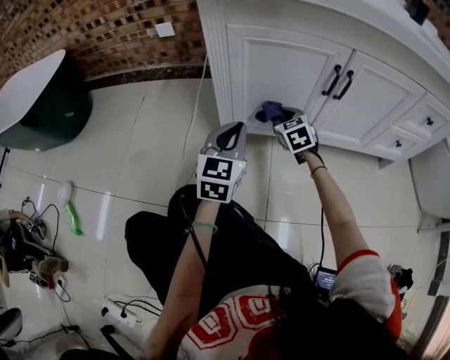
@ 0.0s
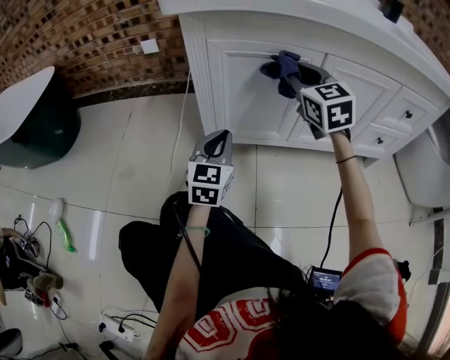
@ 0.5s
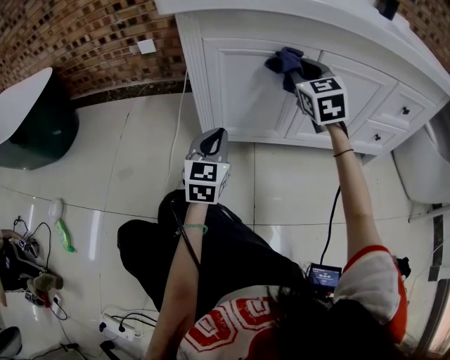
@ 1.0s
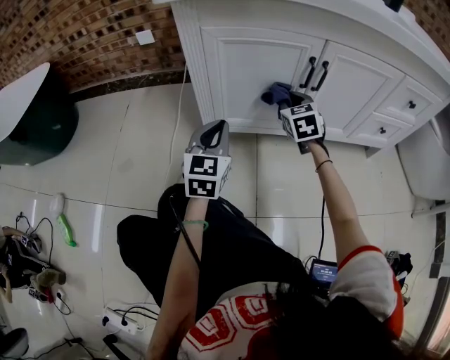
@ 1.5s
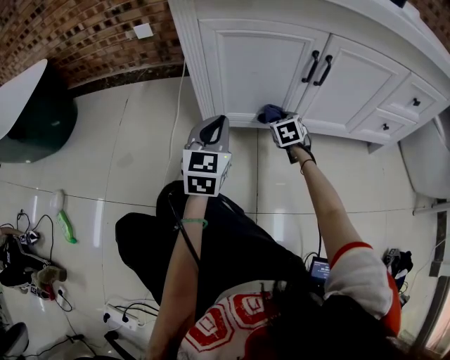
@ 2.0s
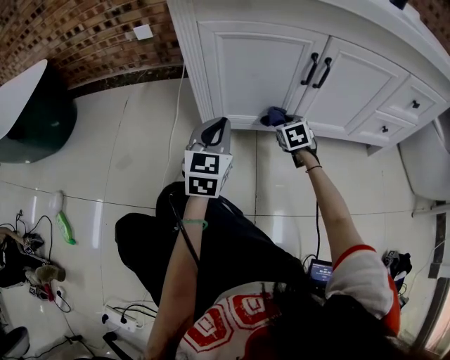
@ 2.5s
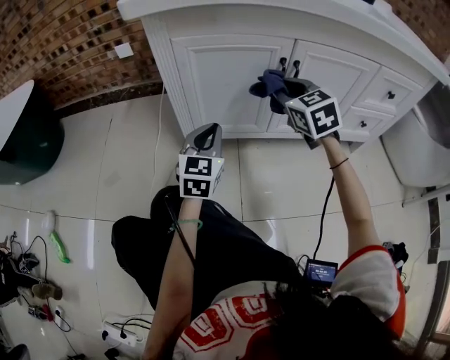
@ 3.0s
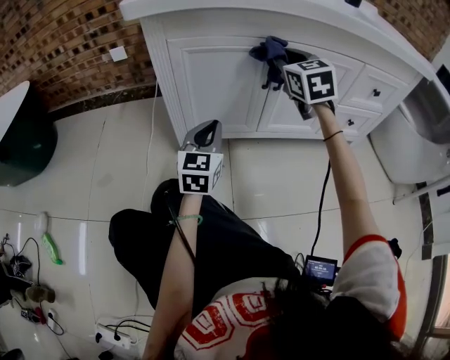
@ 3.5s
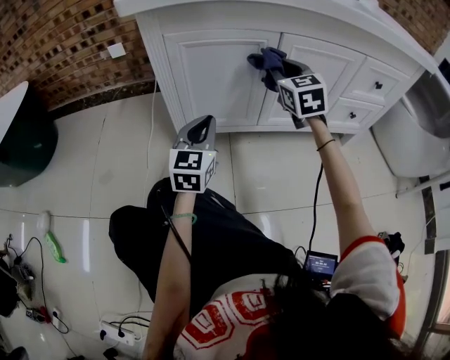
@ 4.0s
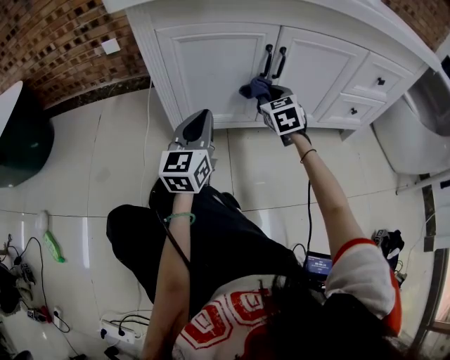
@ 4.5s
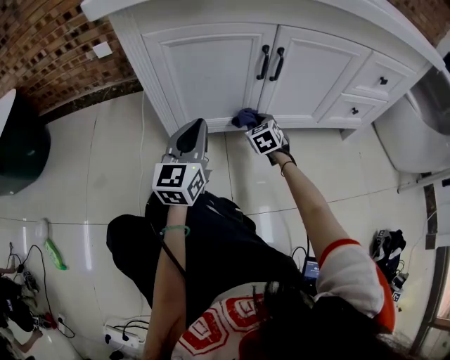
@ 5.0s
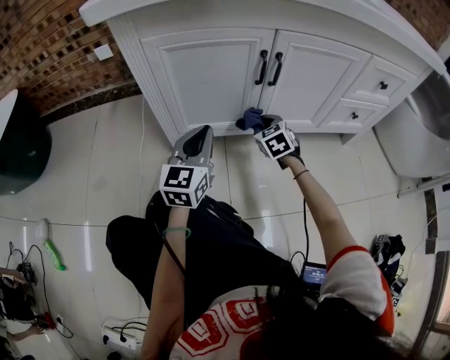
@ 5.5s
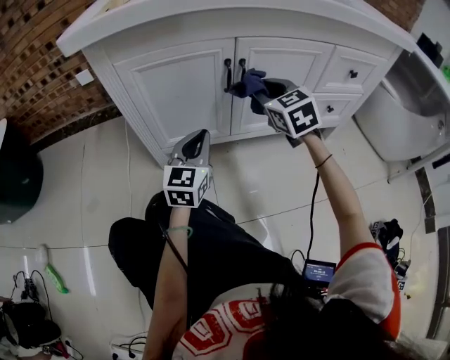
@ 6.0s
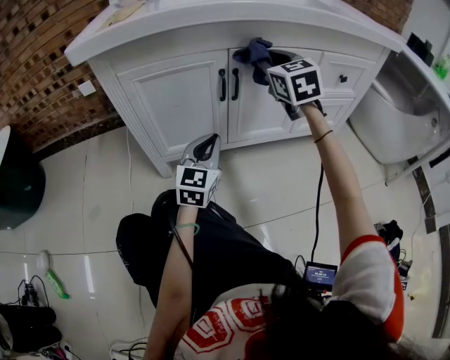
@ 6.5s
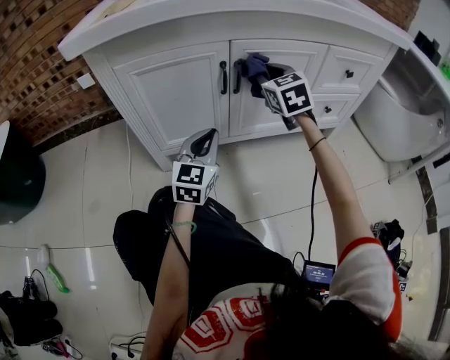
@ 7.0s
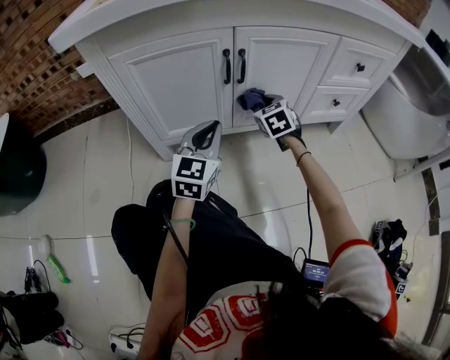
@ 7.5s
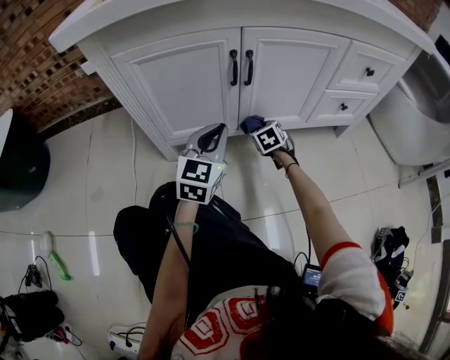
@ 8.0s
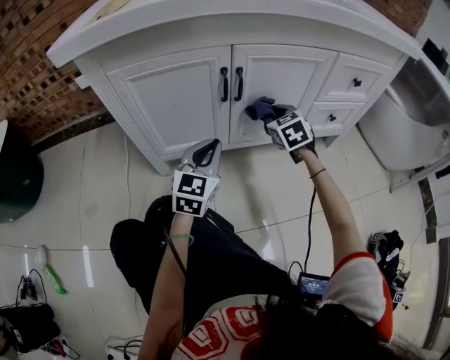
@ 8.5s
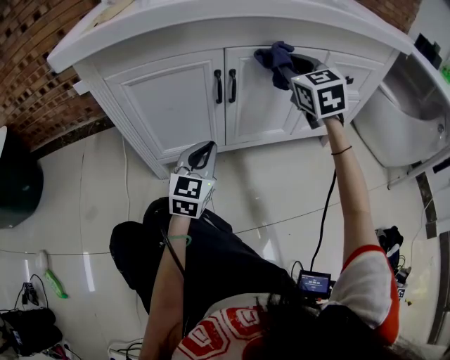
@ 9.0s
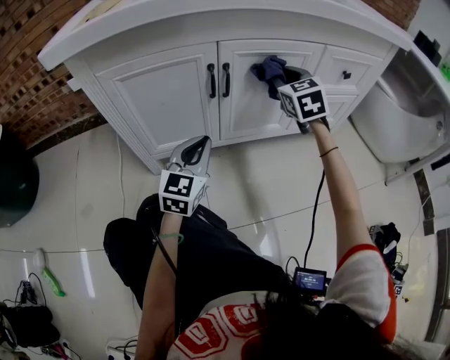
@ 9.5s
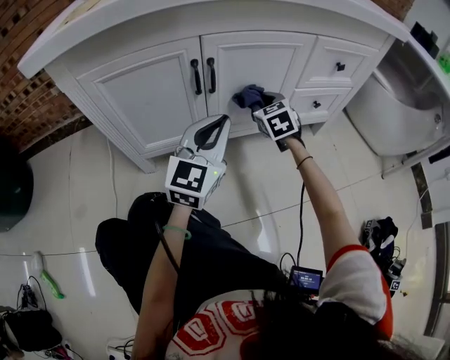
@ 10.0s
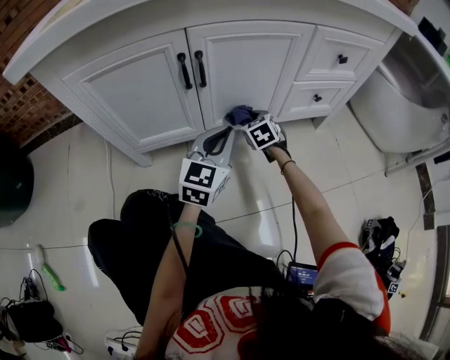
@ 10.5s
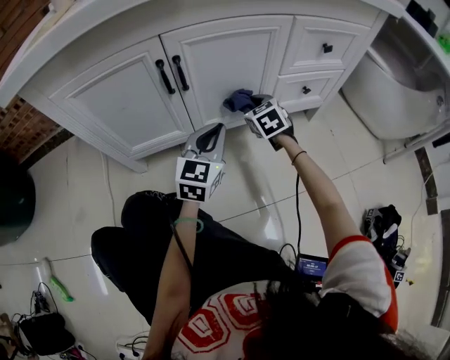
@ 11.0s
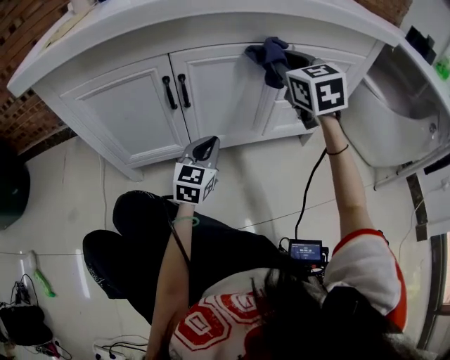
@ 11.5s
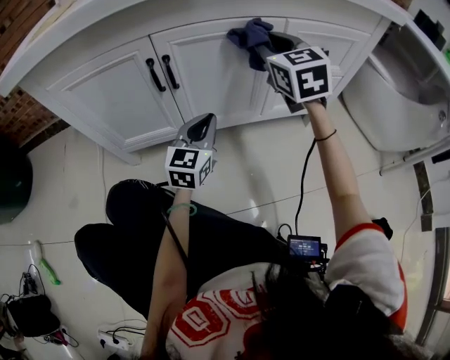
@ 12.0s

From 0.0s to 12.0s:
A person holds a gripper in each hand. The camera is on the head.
From 0.0s to 2.0s: The right gripper shifts approximately 5 cm to the right, and goes upward and returns, roughly 25 cm each way.
From 2.0s to 4.0s: The left gripper is displaced to the right by roughly 5 cm. The right gripper is displaced upward by some 30 cm, and tilts its fingers some 30 degrees upward.
From 4.0s to 6.0s: The left gripper shifts roughly 5 cm to the right, while the right gripper travels downward and back again, roughly 30 cm each way.
From 6.0s to 8.0s: The right gripper is displaced downward by approximately 30 cm, and rotates some 30 degrees.
From 8.0s to 10.0s: The right gripper shifts some 15 cm upward. The left gripper travels to the right and upward by roughly 10 cm.
From 10.0s to 12.0s: The right gripper moves upward, approximately 20 cm; the left gripper travels downward and forward by approximately 10 cm.

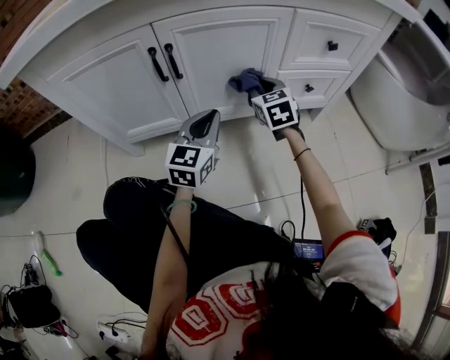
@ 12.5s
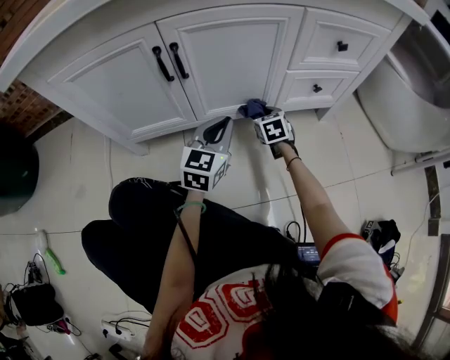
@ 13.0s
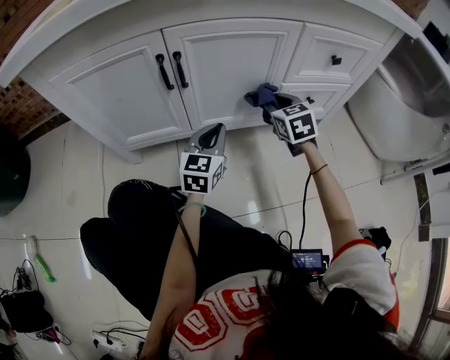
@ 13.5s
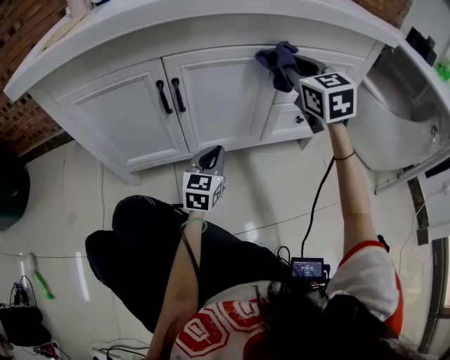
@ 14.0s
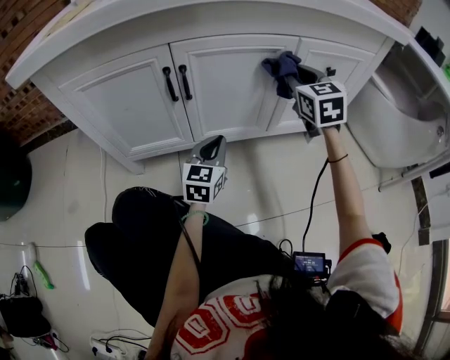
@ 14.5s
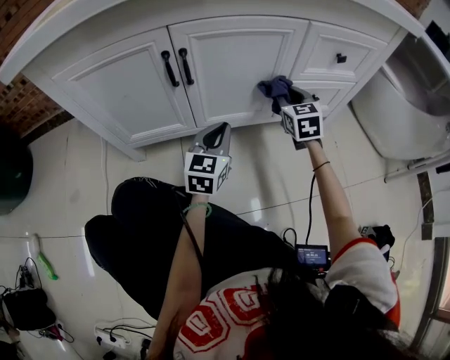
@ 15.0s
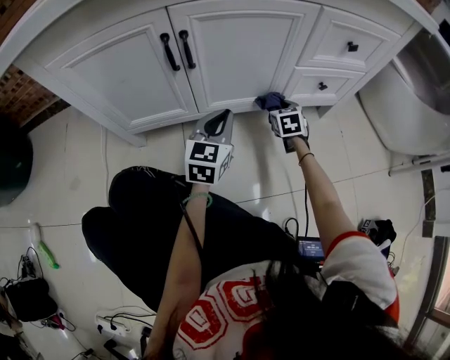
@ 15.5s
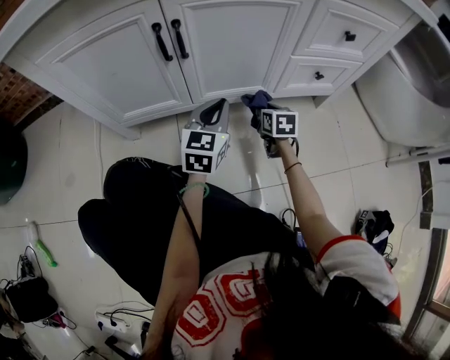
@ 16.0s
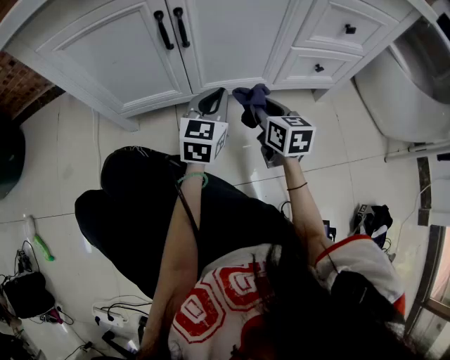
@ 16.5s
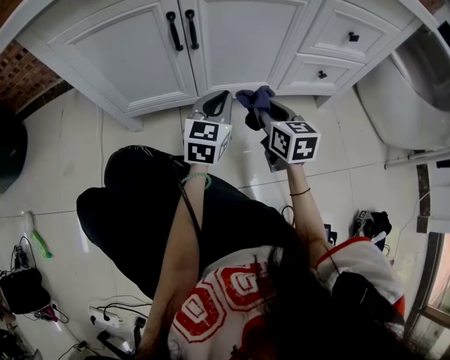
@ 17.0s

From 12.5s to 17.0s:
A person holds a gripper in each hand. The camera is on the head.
From 12.5s to 14.5s: The right gripper moves up and down over some 40 cm, changing direction 2 times.
From 14.5s to 17.0s: The right gripper goes approximately 25 cm downward, backward and to the left, and rotates about 30 degrees.

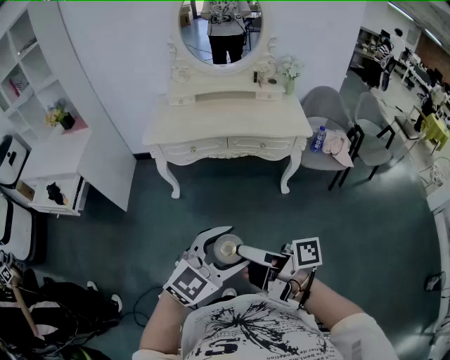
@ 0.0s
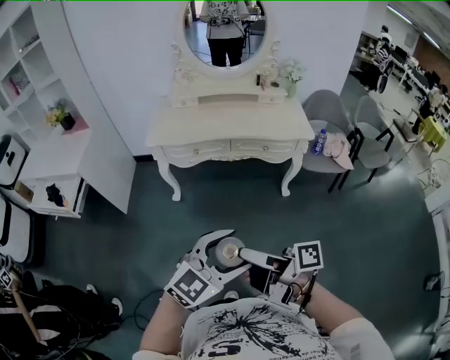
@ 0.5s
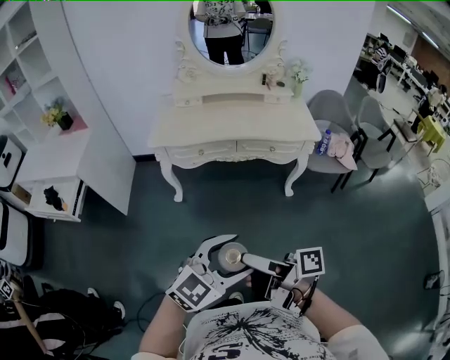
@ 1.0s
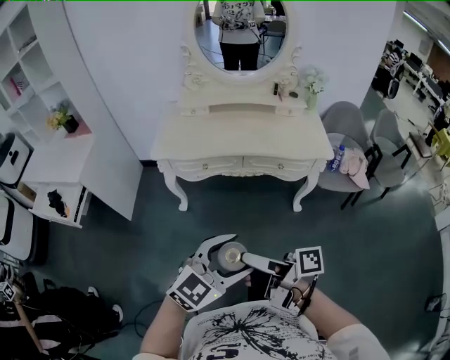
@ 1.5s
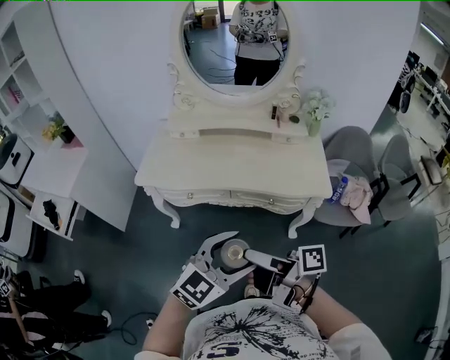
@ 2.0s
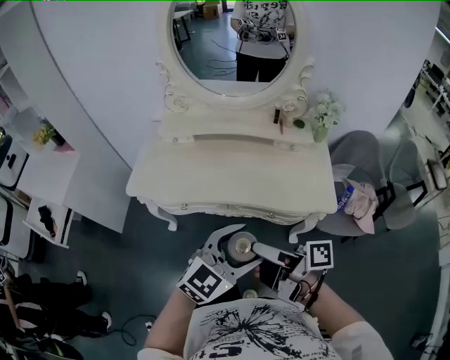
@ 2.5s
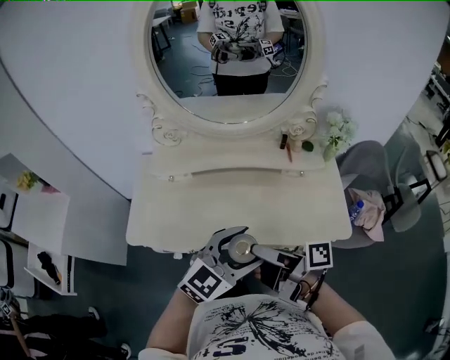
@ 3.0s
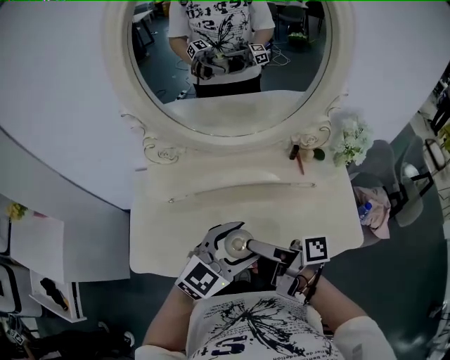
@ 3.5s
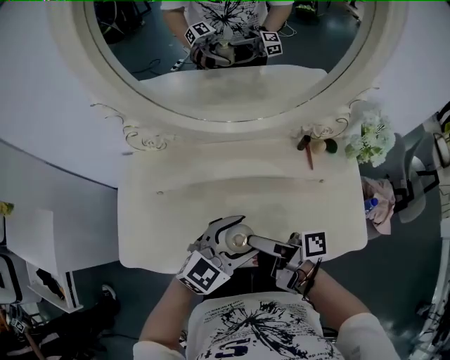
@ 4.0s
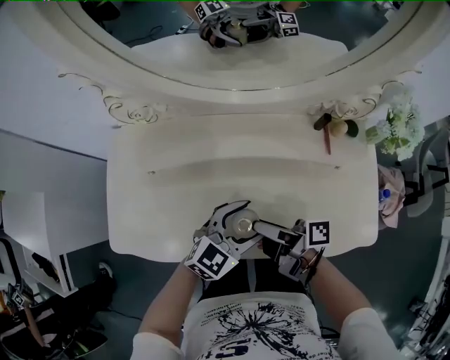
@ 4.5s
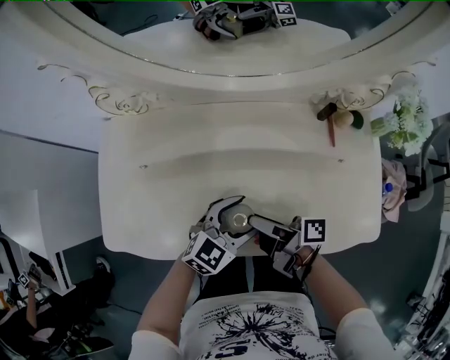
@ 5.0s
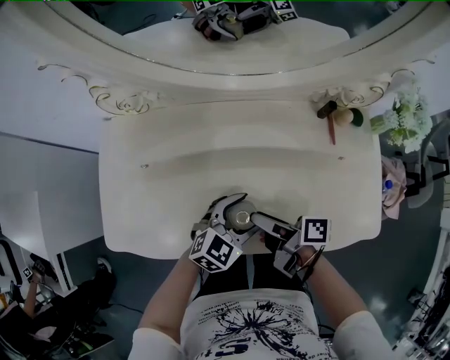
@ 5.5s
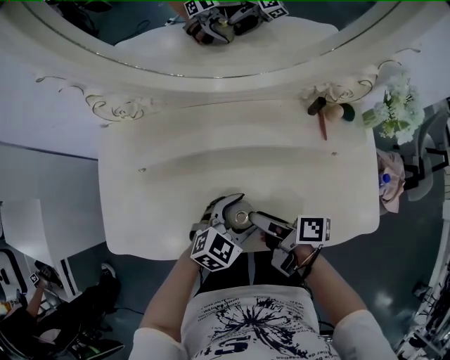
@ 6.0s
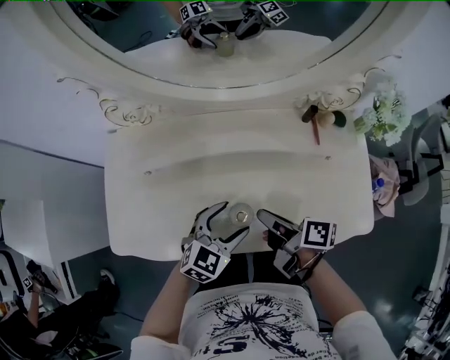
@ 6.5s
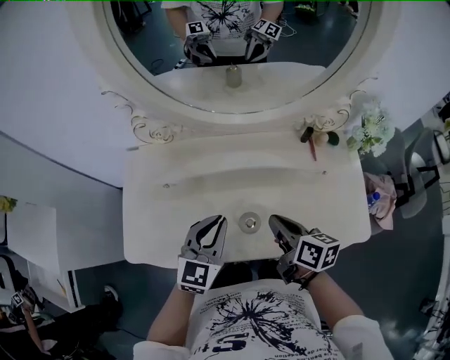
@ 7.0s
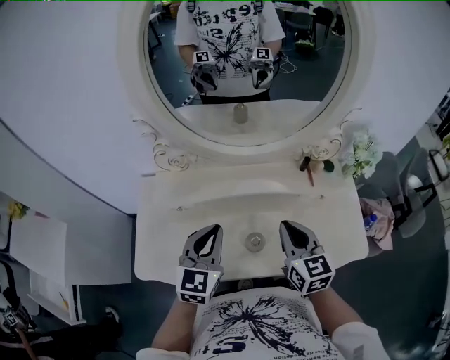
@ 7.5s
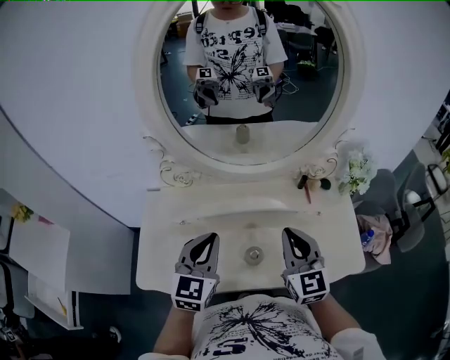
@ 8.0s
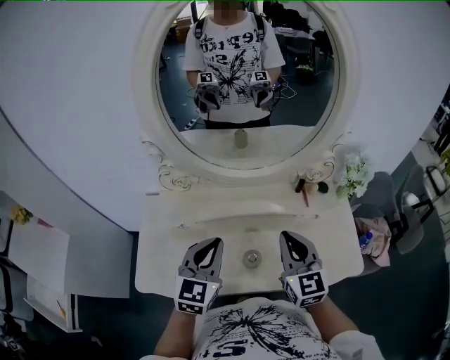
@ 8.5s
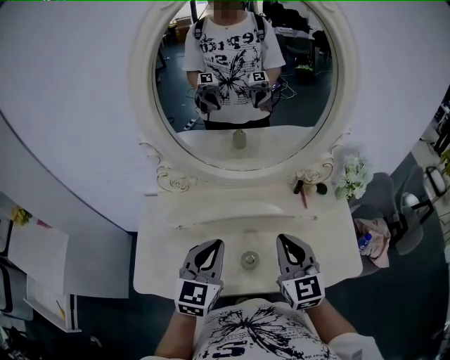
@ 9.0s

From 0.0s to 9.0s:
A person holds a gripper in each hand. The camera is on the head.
From 0.0s to 2.0s: The left gripper changes place by about 30 cm.
From 2.0s to 4.5s: The left gripper changes place by about 50 cm.
From 4.5s to 7.0s: The left gripper shifts by about 15 cm, swivels about 30 degrees, and closes its fingers.
From 7.0s to 9.0s: The left gripper heads upward, covering approximately 10 cm.

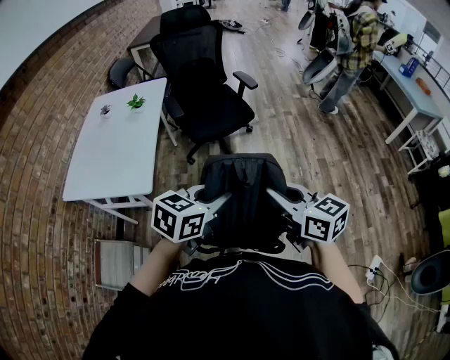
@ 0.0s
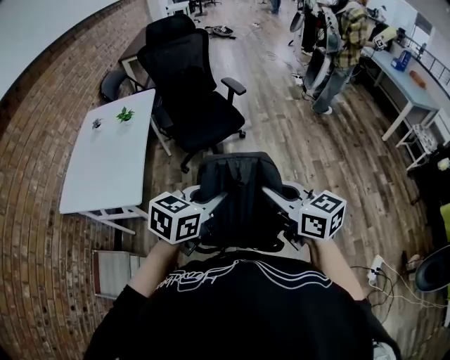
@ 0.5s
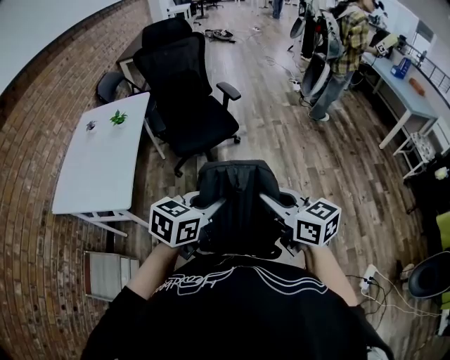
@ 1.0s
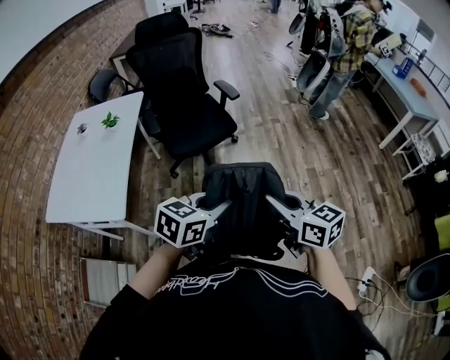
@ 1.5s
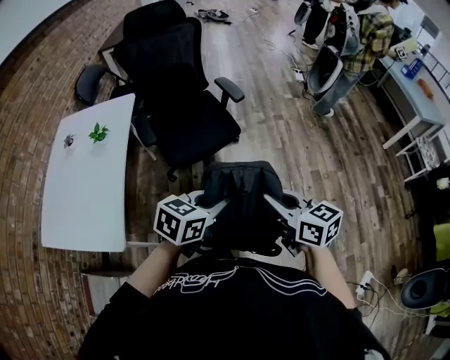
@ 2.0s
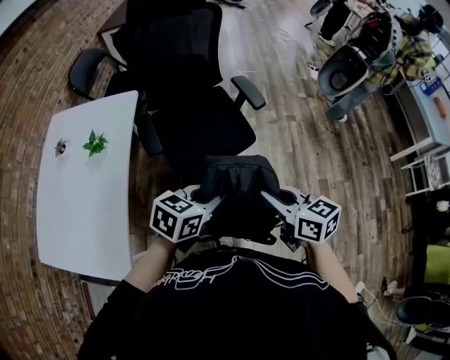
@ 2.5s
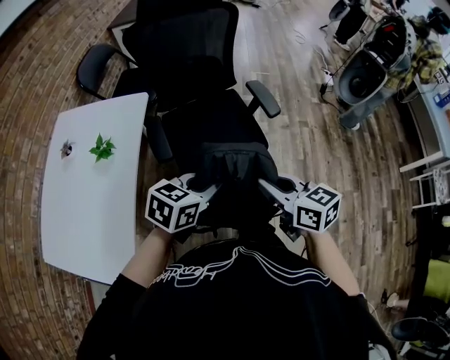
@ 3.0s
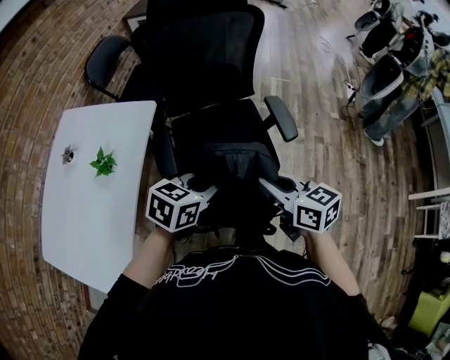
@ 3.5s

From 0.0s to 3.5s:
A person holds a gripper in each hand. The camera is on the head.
From 0.0s to 2.0s: Both grippers move forward, about 25 cm.
From 2.0s to 3.5s: Both grippers travel together forward, about 35 cm.
